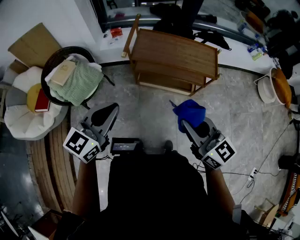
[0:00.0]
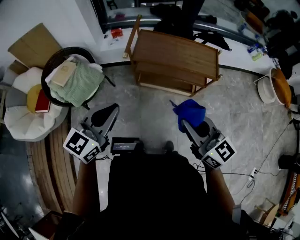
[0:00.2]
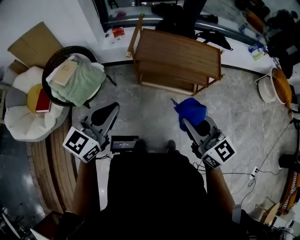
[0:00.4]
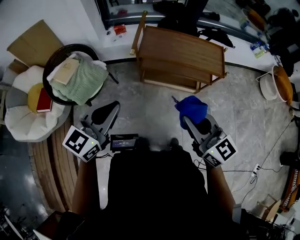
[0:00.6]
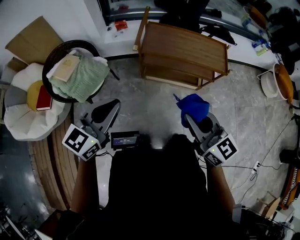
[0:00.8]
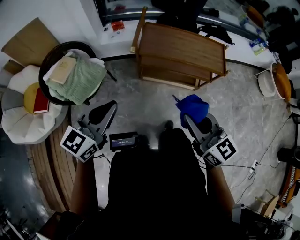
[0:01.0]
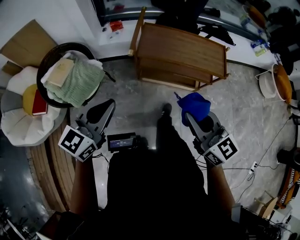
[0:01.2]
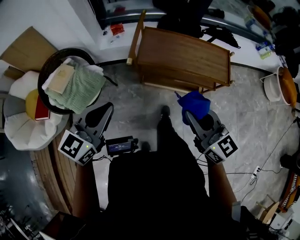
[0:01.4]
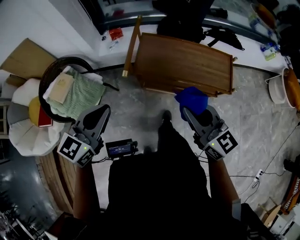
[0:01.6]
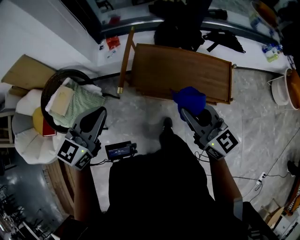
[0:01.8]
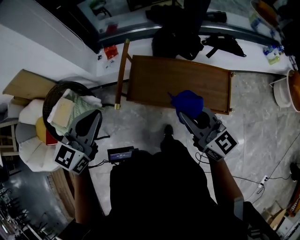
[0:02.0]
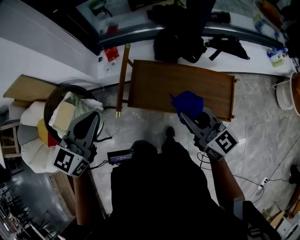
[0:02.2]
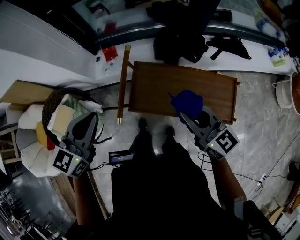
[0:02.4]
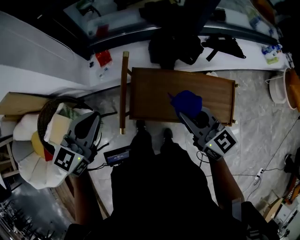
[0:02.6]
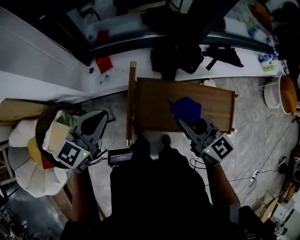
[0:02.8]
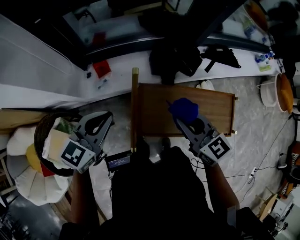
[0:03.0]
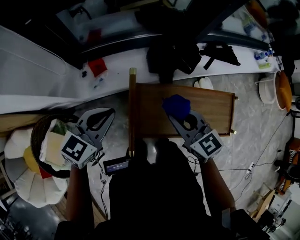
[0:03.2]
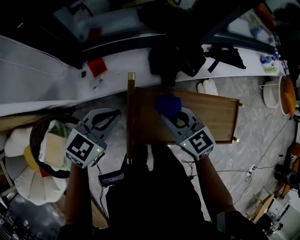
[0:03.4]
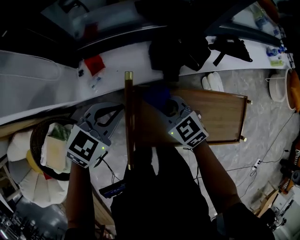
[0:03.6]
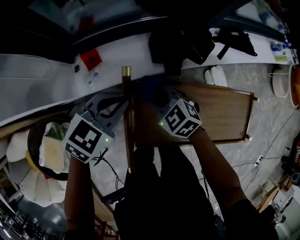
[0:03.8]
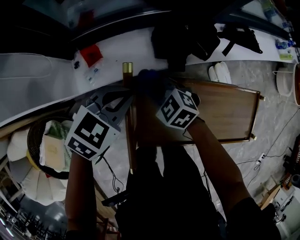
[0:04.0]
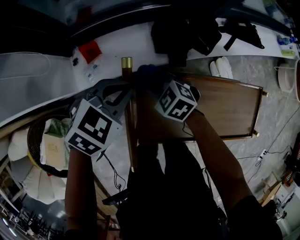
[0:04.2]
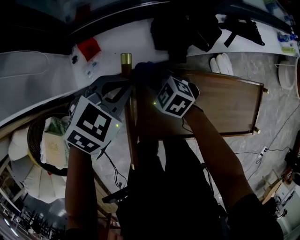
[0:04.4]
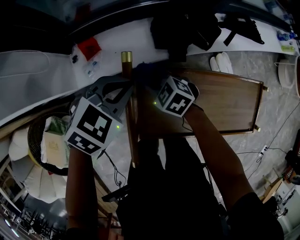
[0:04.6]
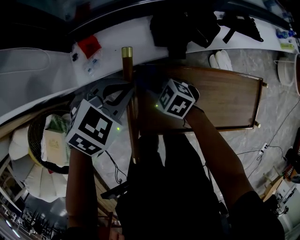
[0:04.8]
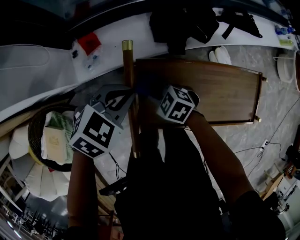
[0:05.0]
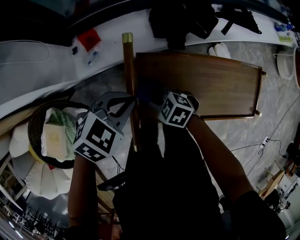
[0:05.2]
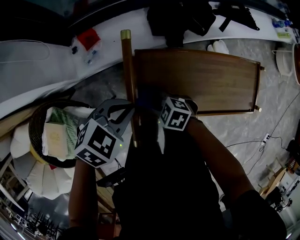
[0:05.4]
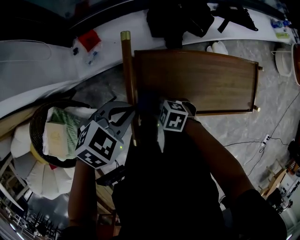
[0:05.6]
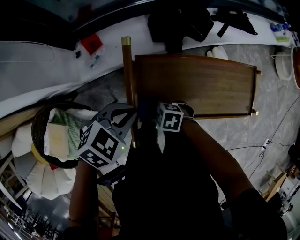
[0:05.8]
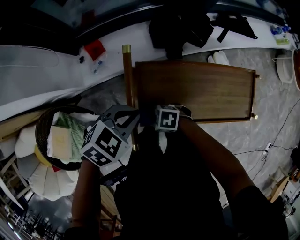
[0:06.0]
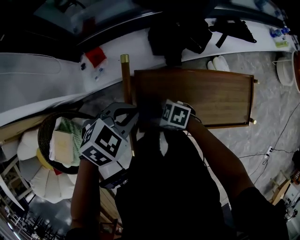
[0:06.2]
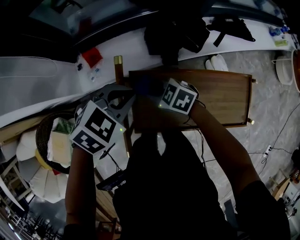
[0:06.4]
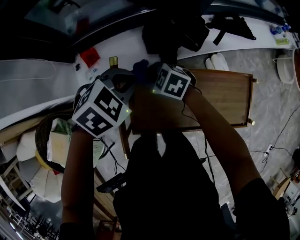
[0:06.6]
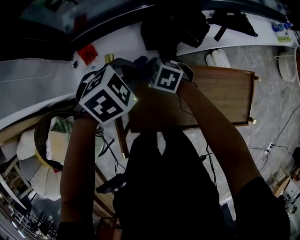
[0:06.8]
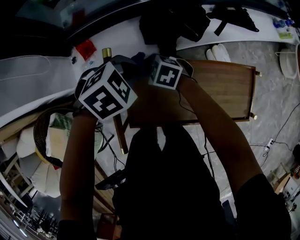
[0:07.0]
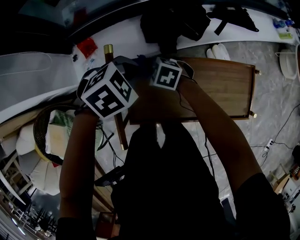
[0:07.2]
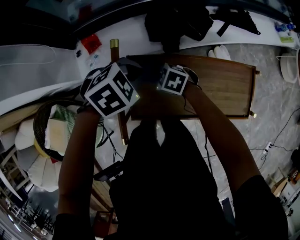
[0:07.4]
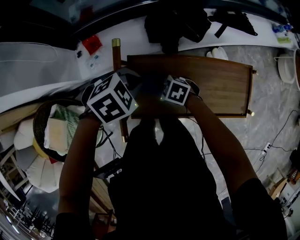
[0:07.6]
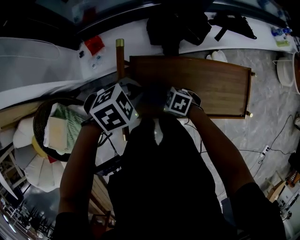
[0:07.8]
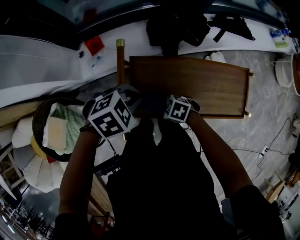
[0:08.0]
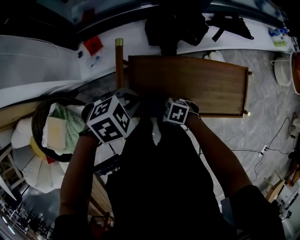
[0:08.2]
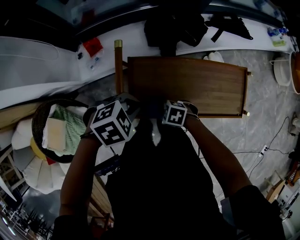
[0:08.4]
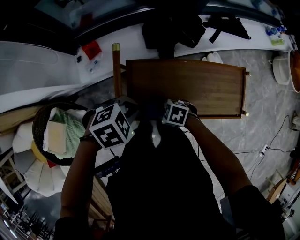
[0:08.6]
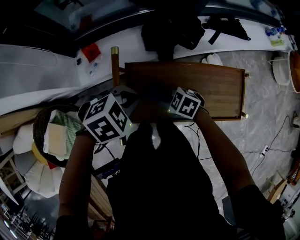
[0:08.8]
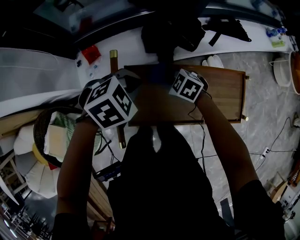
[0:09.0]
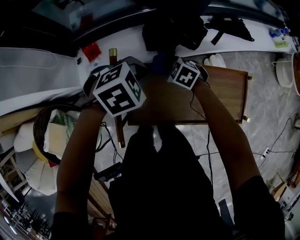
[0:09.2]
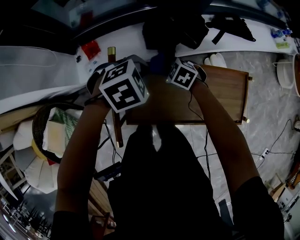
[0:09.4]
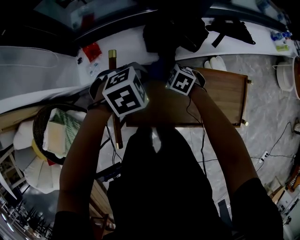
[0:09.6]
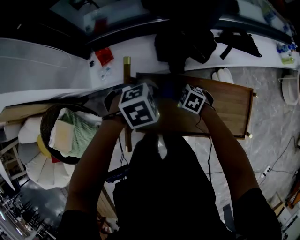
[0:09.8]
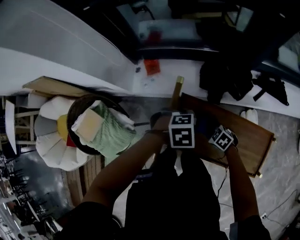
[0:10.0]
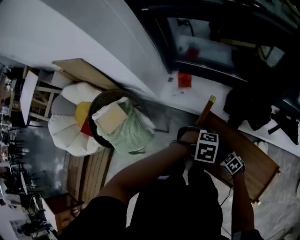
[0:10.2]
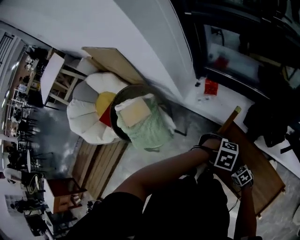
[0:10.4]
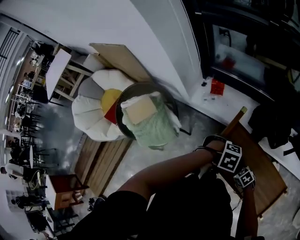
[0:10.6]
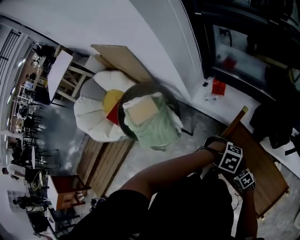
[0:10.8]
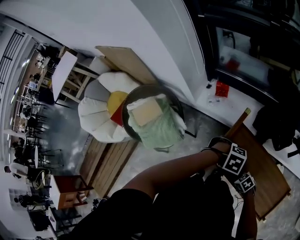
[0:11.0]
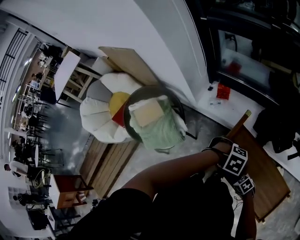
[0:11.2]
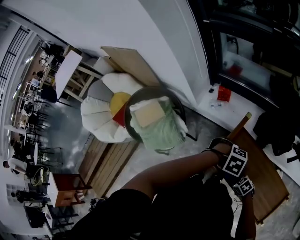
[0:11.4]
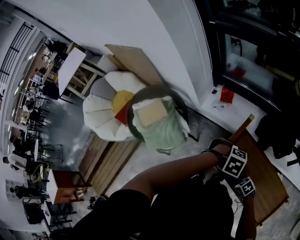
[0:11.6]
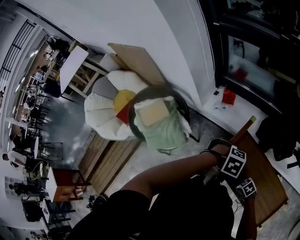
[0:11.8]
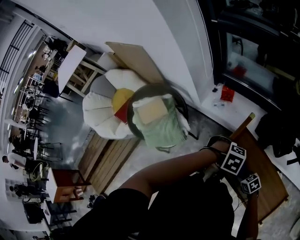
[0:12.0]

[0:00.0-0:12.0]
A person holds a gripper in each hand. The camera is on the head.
0:00.0 to 0:01.6: The two grippers go about 20 cm forward.
0:01.6 to 0:03.0: The two grippers go roughly 35 cm forward.
0:03.0 to 0:04.4: The left gripper goes about 25 cm downward, forward and to the right, and swivels some 30 degrees. Meanwhile the right gripper heads downward and forward, covering roughly 30 cm, and points its fingers about 30 degrees further downward.
0:04.4 to 0:06.0: The right gripper shifts by some 25 cm, and changes its angle by roughly 40 degrees; the left gripper ends up some 15 cm from where it was.
0:06.0 to 0:07.6: The right gripper reaches approximately 10 cm upward, then returns.
0:07.6 to 0:09.0: The right gripper shifts by approximately 10 cm.
0:09.0 to 0:10.4: The right gripper ends up roughly 15 cm from where it was, and changes its angle by approximately 20 degrees. Meanwhile the left gripper changes place by roughly 10 cm.
0:10.4 to 0:12.0: The left gripper shifts by some 5 cm.

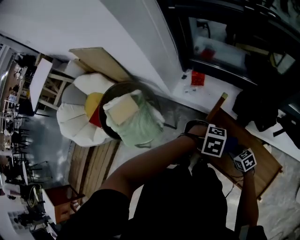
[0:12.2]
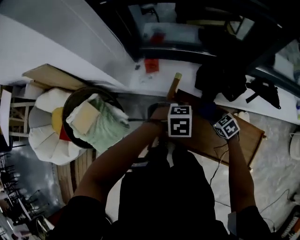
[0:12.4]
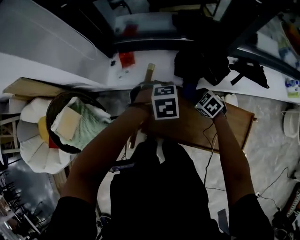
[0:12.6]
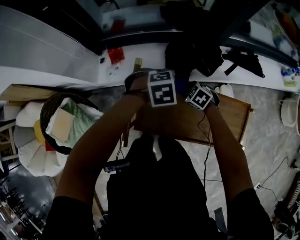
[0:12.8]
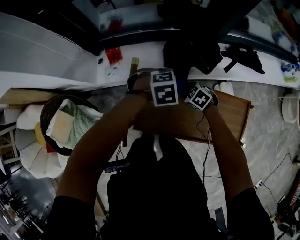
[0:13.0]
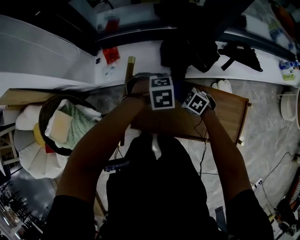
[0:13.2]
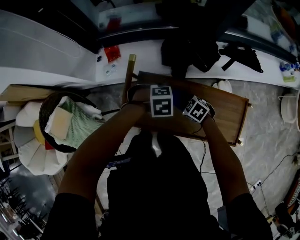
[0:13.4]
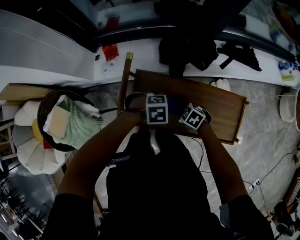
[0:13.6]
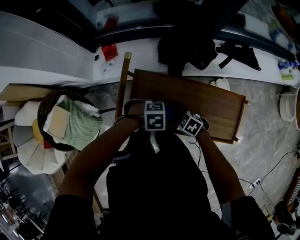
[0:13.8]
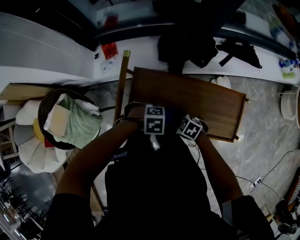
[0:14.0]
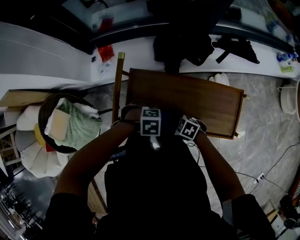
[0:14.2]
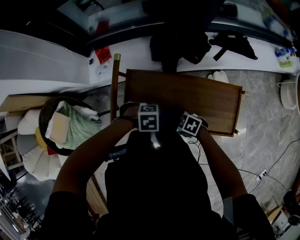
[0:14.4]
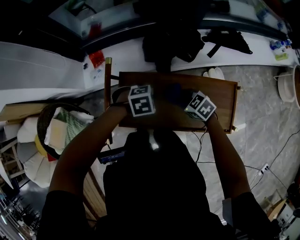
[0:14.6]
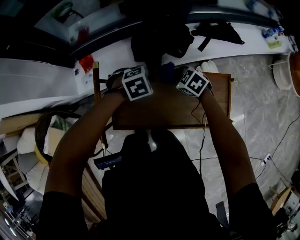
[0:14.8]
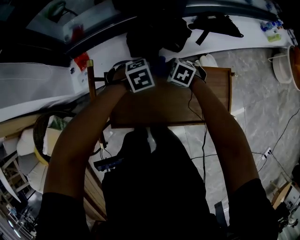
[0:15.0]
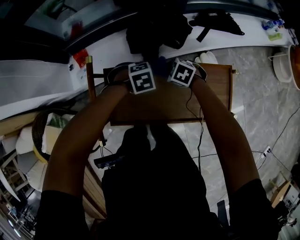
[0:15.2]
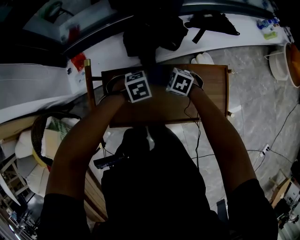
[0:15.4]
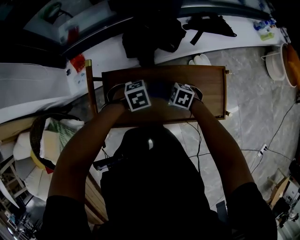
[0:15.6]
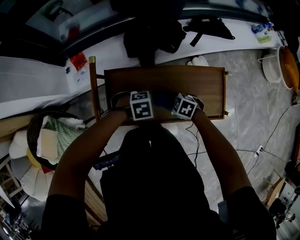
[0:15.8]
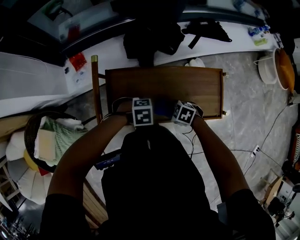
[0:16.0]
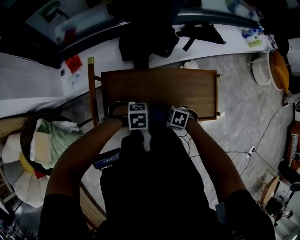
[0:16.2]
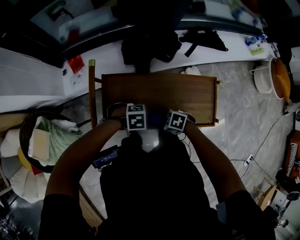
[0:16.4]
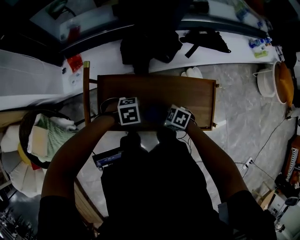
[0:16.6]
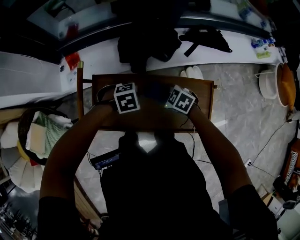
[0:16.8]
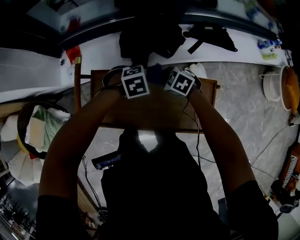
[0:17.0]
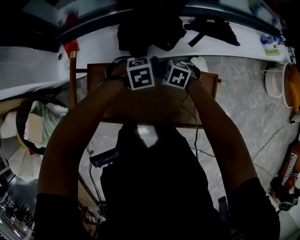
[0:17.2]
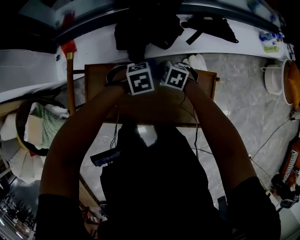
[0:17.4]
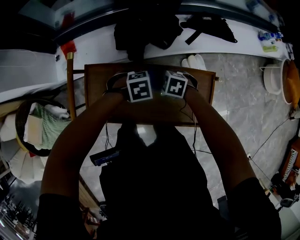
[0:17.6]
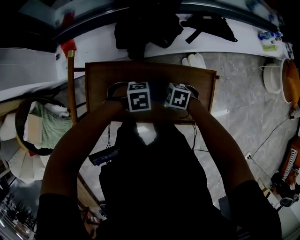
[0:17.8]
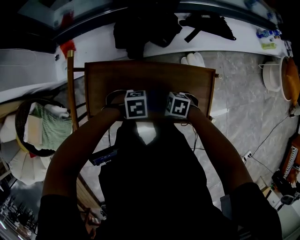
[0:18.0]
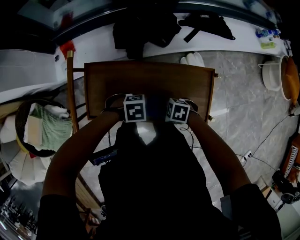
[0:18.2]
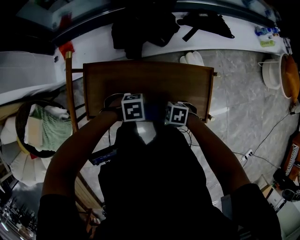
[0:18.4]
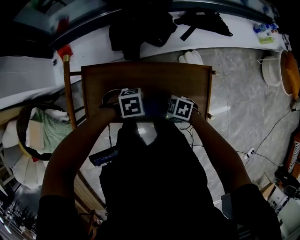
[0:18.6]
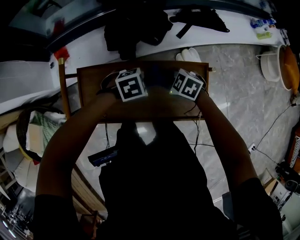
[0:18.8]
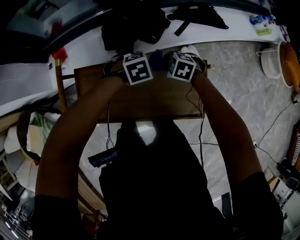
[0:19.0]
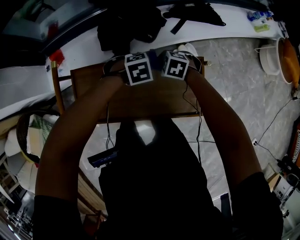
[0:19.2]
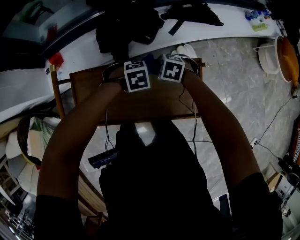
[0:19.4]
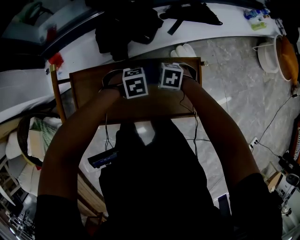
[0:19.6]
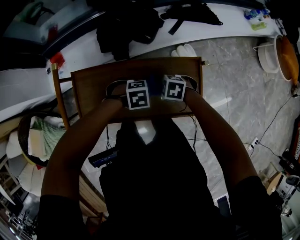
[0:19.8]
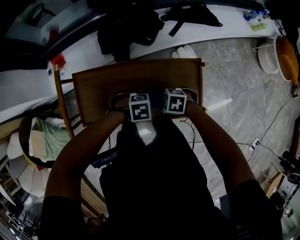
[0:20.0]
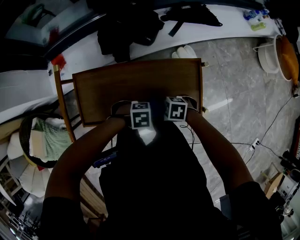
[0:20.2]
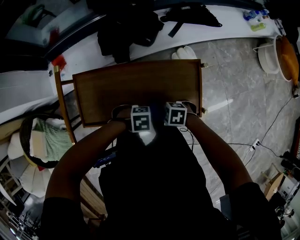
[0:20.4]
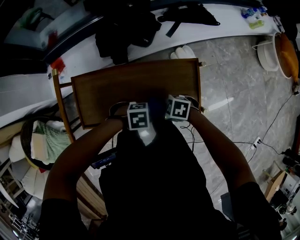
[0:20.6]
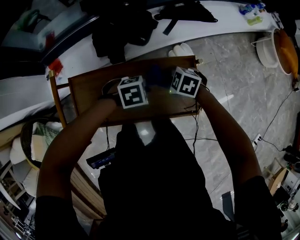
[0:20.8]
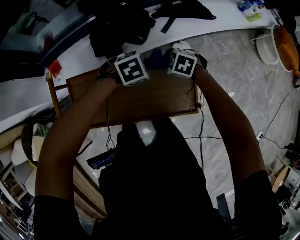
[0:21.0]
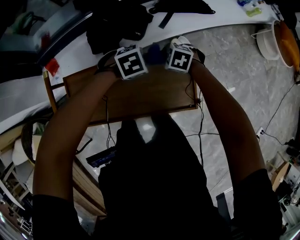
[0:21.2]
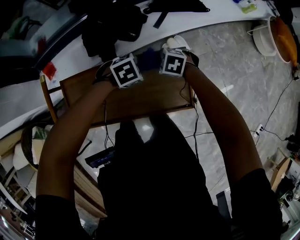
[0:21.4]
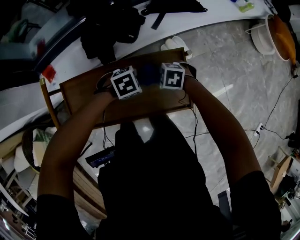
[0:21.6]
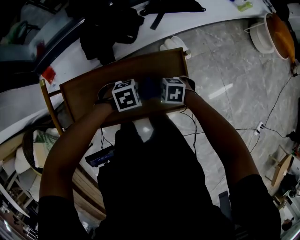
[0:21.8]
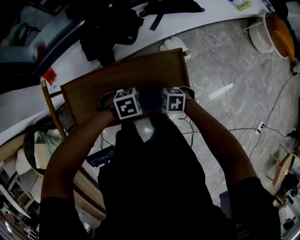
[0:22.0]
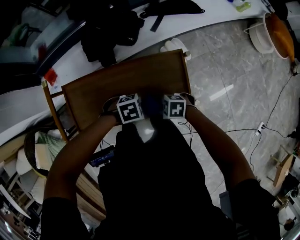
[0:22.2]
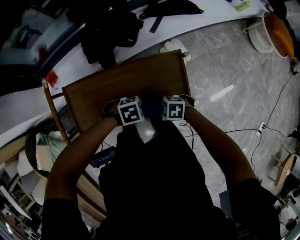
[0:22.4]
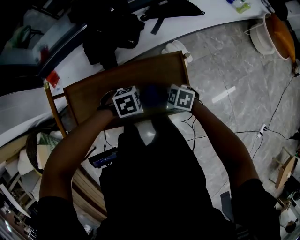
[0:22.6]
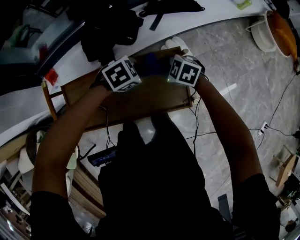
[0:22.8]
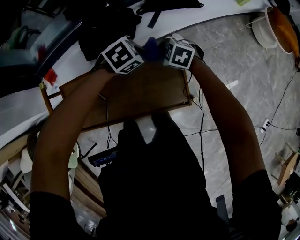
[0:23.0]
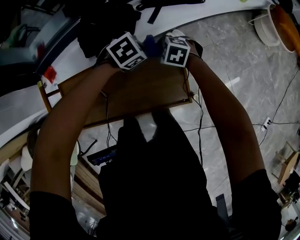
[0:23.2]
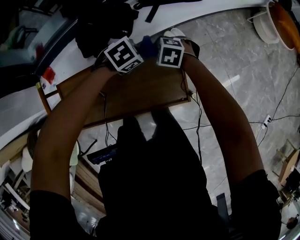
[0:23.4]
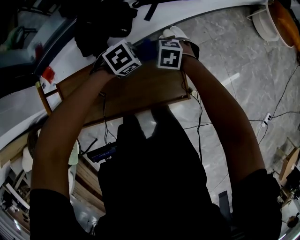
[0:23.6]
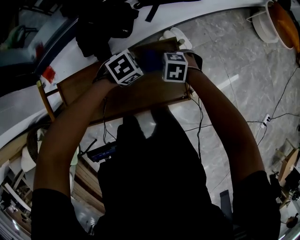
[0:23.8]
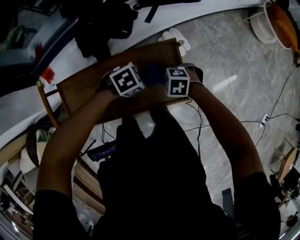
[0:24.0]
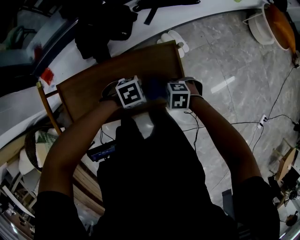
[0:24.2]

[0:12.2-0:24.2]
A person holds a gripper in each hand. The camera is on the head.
0:12.2 to 0:13.8: The left gripper goes roughly 15 cm downward. The right gripper shifts by roughly 10 cm.
0:13.8 to 0:15.2: The left gripper moves about 15 cm. The right gripper ends up roughly 20 cm from where it was.
0:15.2 to 0:16.6: The right gripper changes place by about 20 cm, while the left gripper shifts by roughly 10 cm.
0:19.8 to 0:21.2: The right gripper shifts by about 15 cm, while the left gripper changes place by some 15 cm.
0:21.2 to 0:22.6: The left gripper ends up approximately 15 cm from where it was; the right gripper changes place by about 15 cm, and turns by roughly 20 degrees.
0:22.6 to 0:24.2: The right gripper swivels about 20 degrees.
